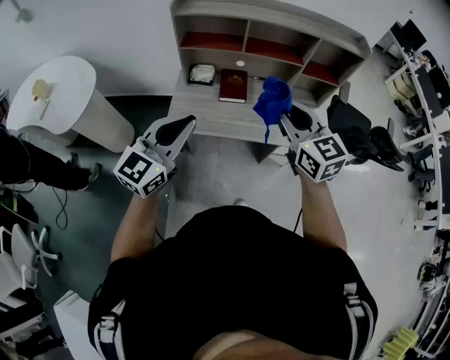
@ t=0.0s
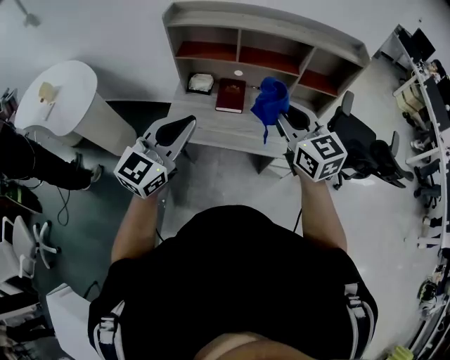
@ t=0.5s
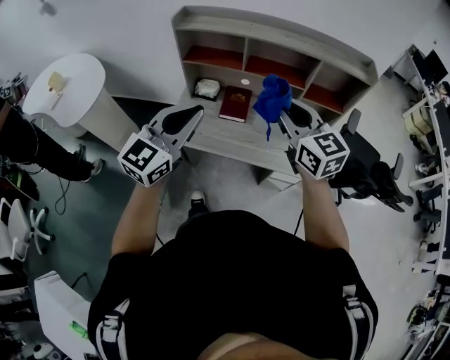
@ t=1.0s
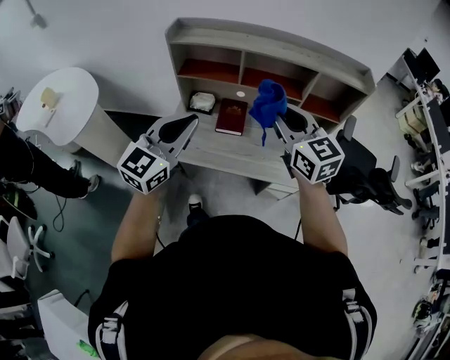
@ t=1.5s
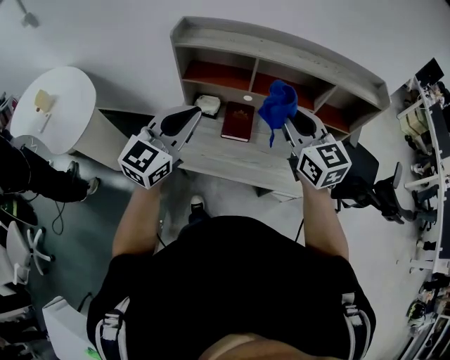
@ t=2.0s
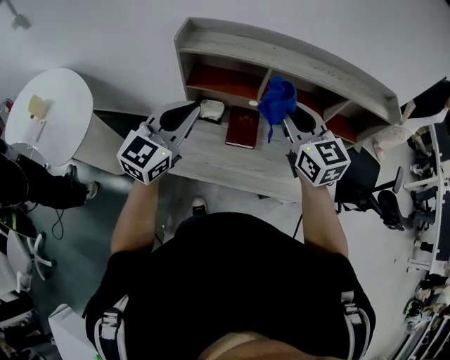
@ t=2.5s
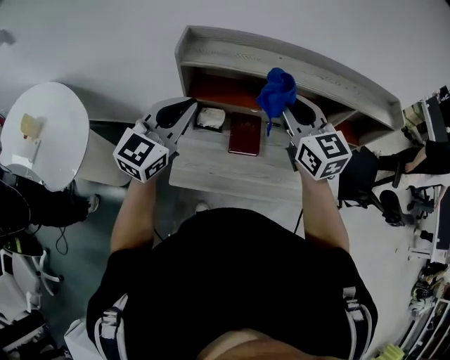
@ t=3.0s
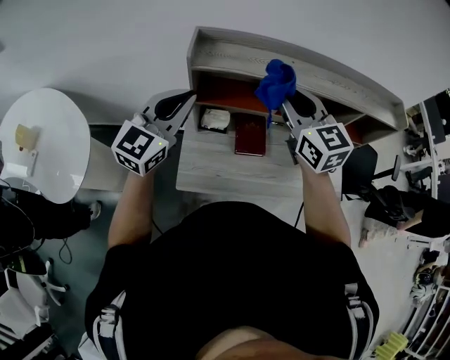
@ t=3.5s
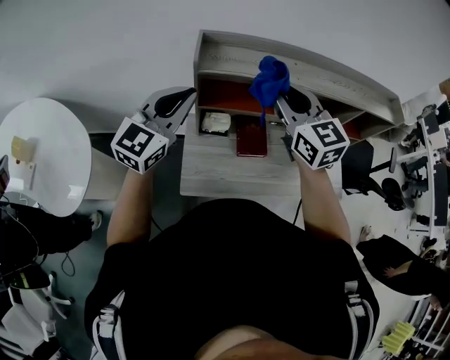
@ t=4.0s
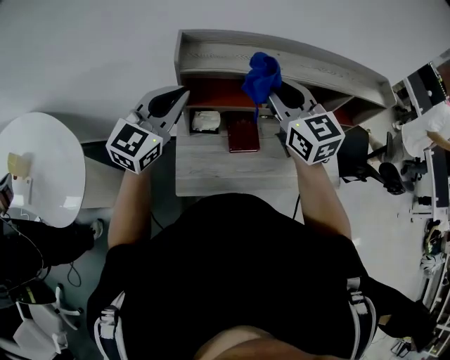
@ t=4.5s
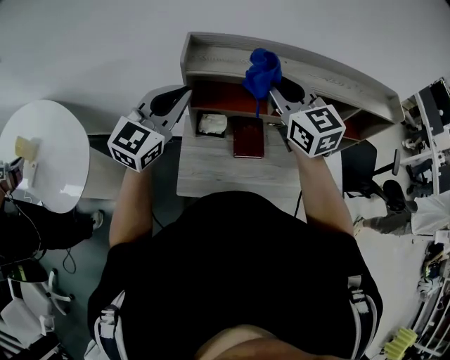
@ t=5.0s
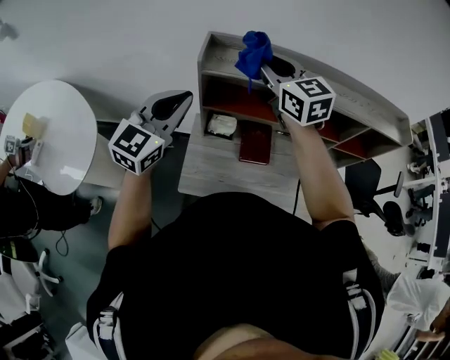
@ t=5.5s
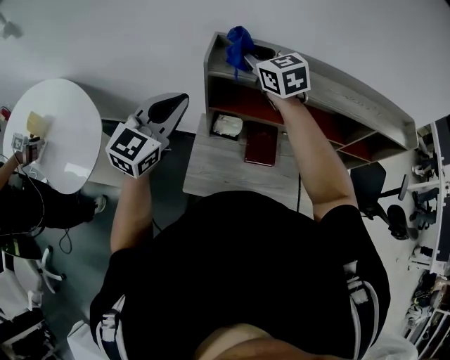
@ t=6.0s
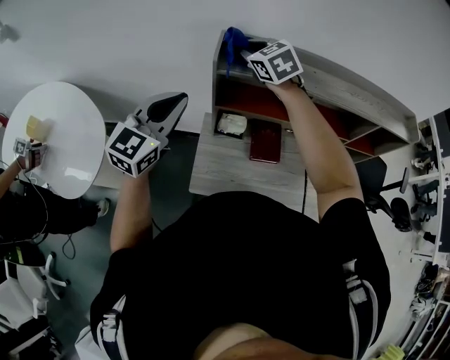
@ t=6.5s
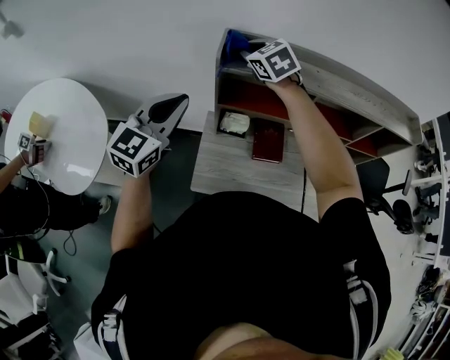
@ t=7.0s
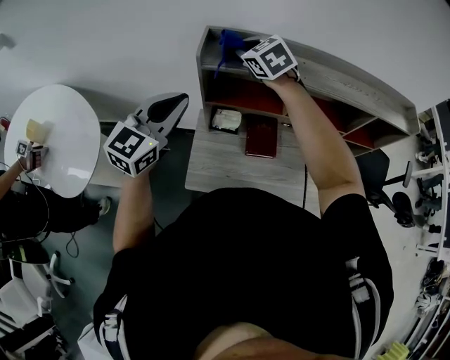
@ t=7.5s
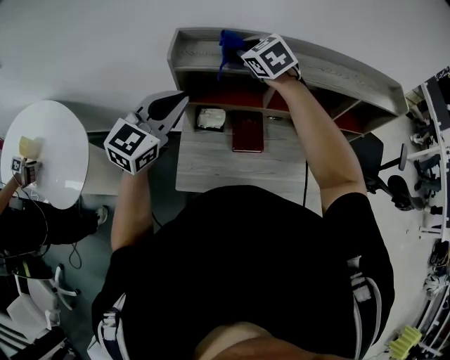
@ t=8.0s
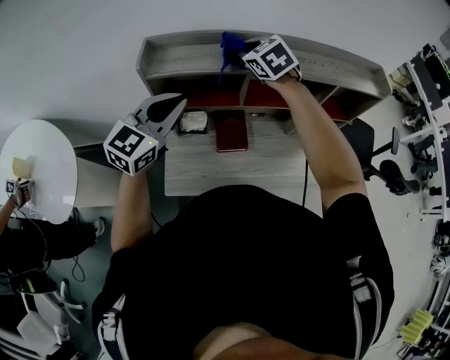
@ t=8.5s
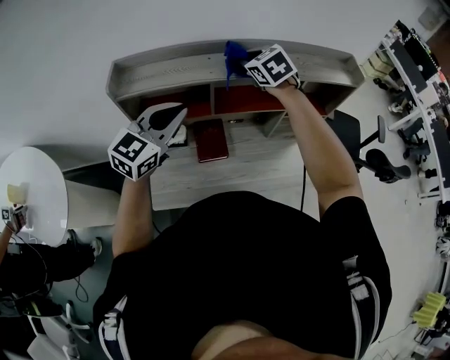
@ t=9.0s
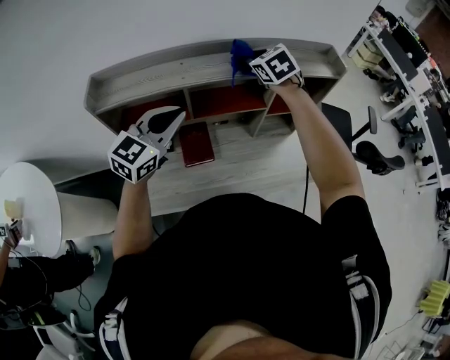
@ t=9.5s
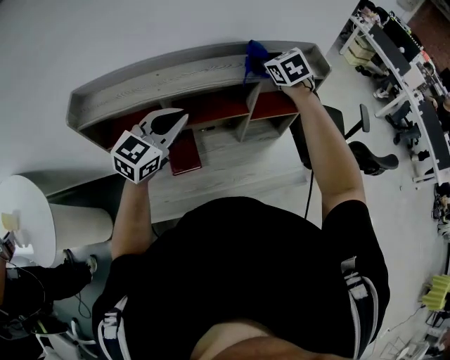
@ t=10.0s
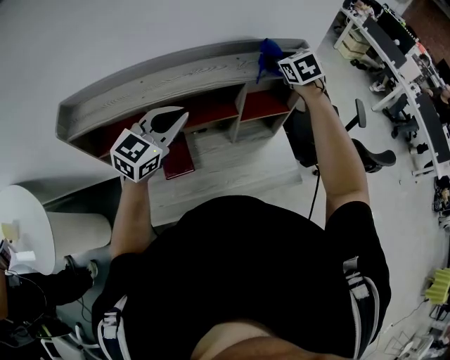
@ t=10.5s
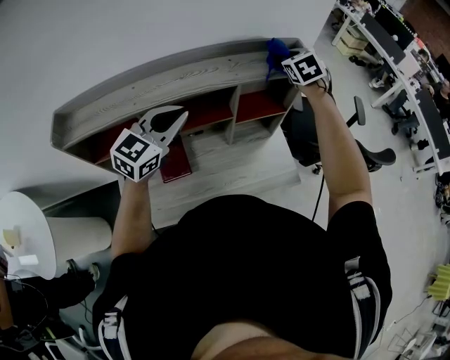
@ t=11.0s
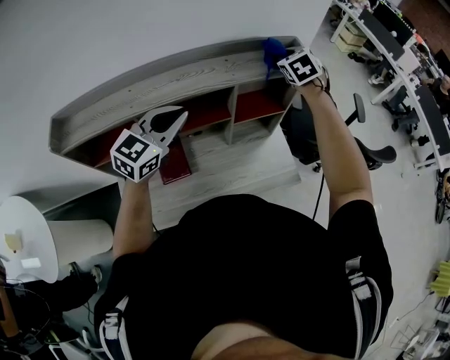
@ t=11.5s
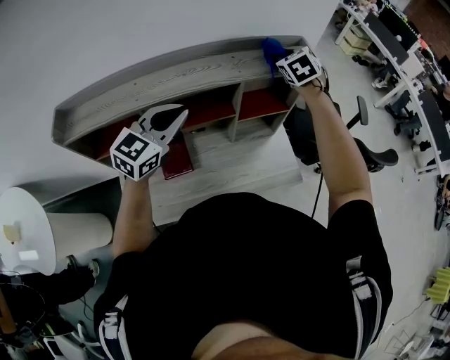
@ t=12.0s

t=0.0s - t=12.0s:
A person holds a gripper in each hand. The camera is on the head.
t=0.0s - t=2.0s: The grippers both shift forward by about 20 cm.
t=2.0s - t=4.0s: The right gripper heads to the left and forward, covering roughly 25 cm. Meanwhile the left gripper travels forward and to the left by approximately 25 cm.
t=4.0s - t=6.0s: The right gripper heads forward and to the left, covering about 15 cm.
t=6.0s - t=8.0s: The grippers both shift to the right by approximately 10 cm. The right gripper changes its angle by roughly 20 degrees.
t=8.0s - t=10.0s: The right gripper shifts about 40 cm to the right, and swivels about 30 degrees. Meanwhile the left gripper goes some 30 cm to the right.
t=10.0s - t=12.0s: The right gripper is displaced to the right and forward by some 15 cm. Meanwhile the left gripper shifts about 5 cm forward.

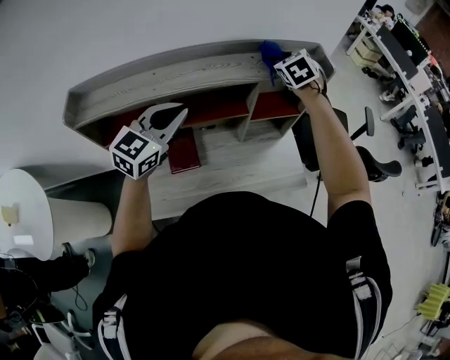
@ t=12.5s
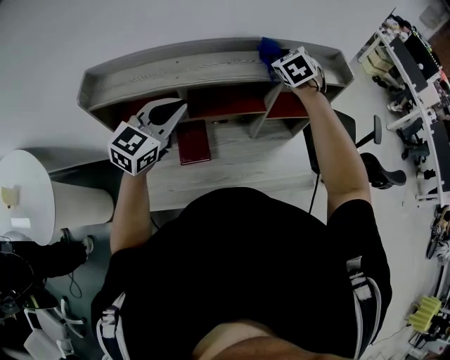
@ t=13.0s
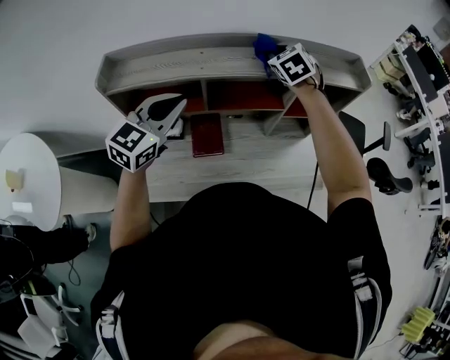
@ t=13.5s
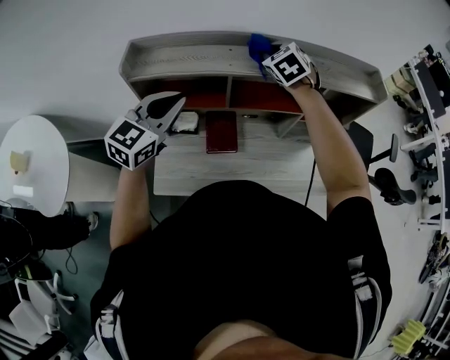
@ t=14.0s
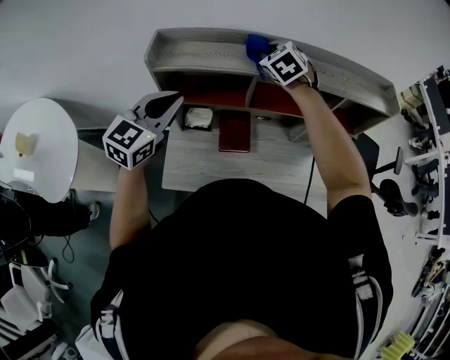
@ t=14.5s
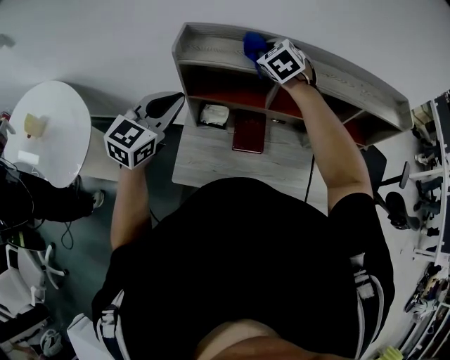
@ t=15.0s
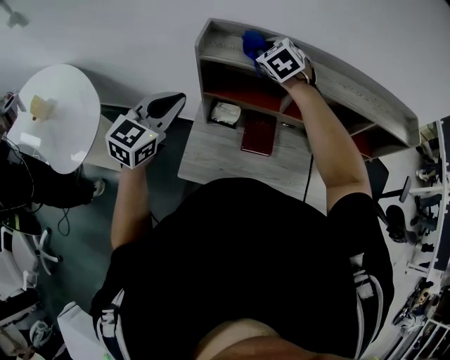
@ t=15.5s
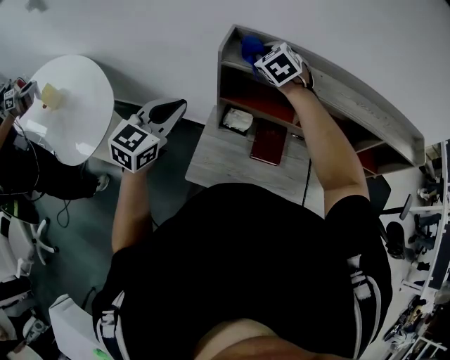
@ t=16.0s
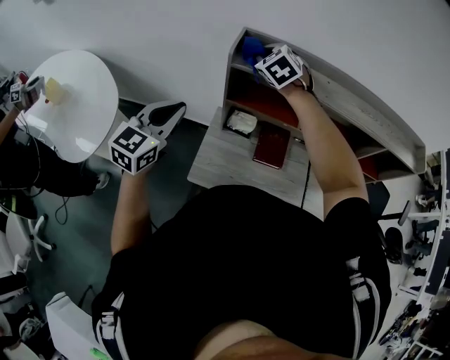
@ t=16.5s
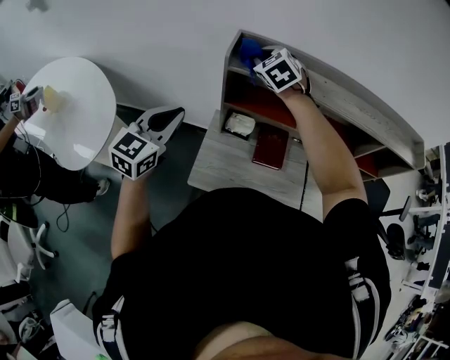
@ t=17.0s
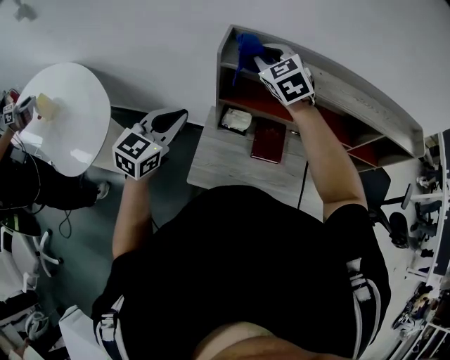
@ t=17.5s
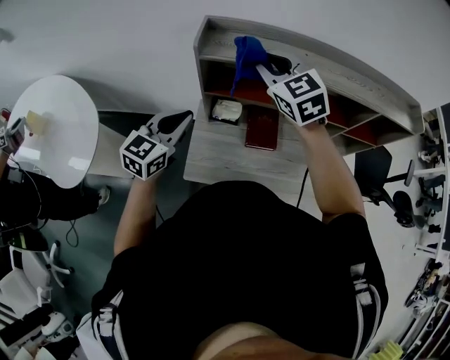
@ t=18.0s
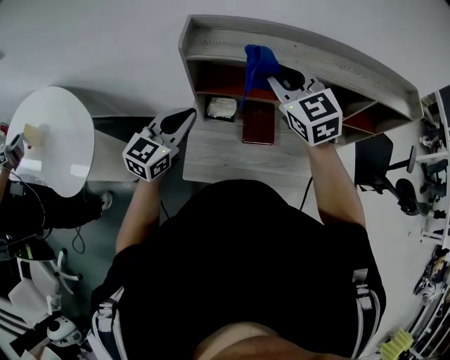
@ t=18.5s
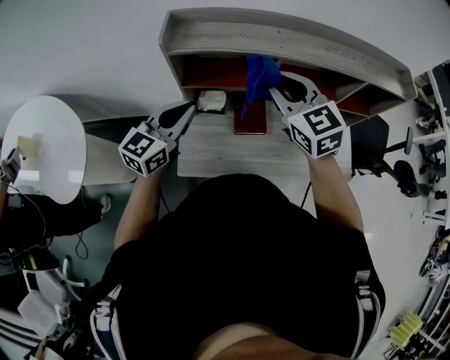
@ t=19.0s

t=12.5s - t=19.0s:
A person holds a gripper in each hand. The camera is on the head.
t=12.5s - t=14.5s: The right gripper travels to the left by roughly 35 cm, and changes its angle by some 20 degrees. Meanwhile the left gripper heads to the left and backward, covering about 25 cm.
t=14.5s - t=17.0s: The two grippers go approximately 20 cm to the left.
t=17.0s - t=19.0s: The right gripper is displaced to the right and backward by roughly 25 cm, and changes its angle by some 30 degrees. The left gripper goes roughly 15 cm to the right, and swivels some 20 degrees.

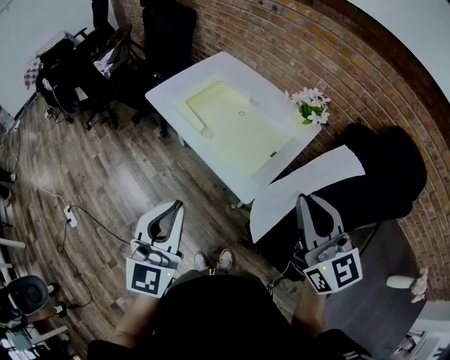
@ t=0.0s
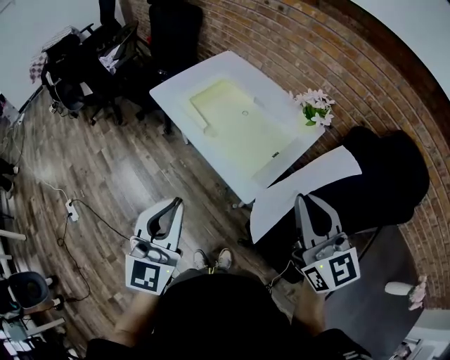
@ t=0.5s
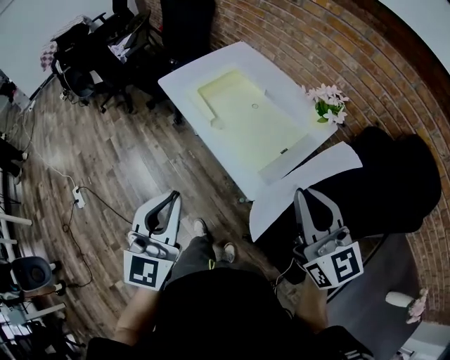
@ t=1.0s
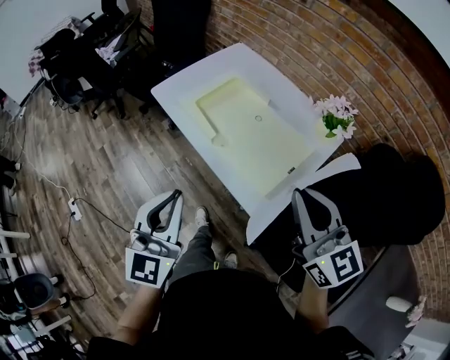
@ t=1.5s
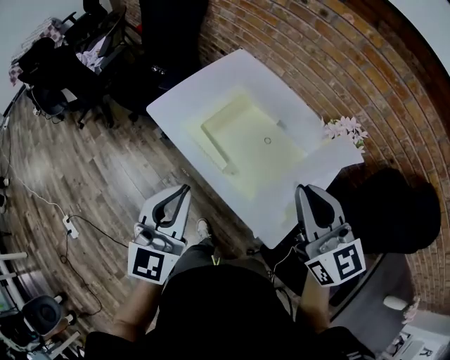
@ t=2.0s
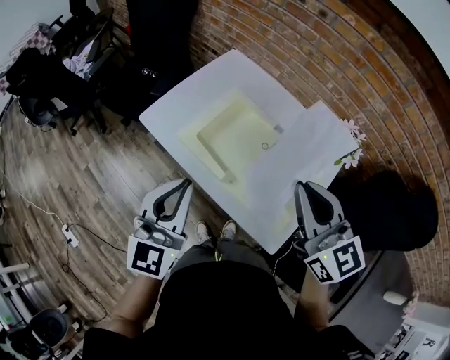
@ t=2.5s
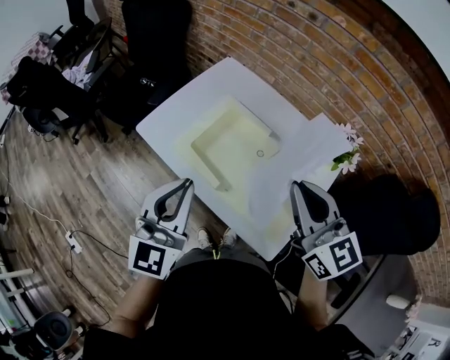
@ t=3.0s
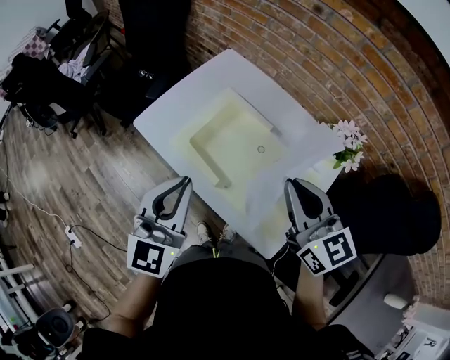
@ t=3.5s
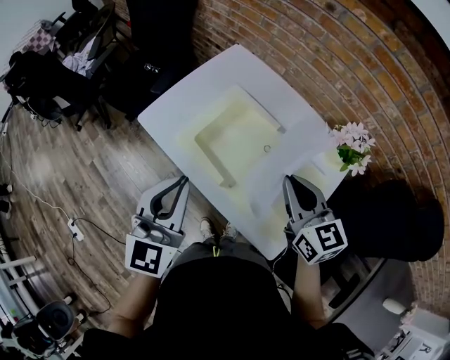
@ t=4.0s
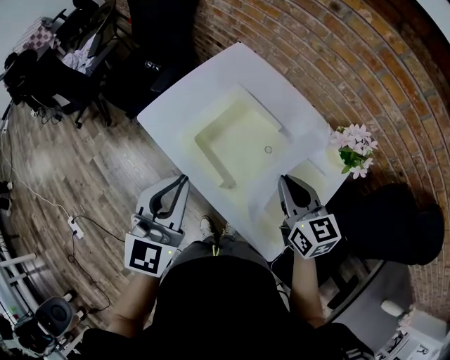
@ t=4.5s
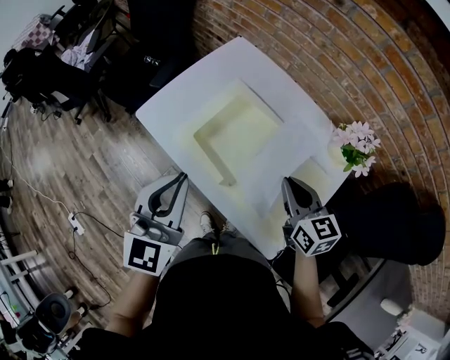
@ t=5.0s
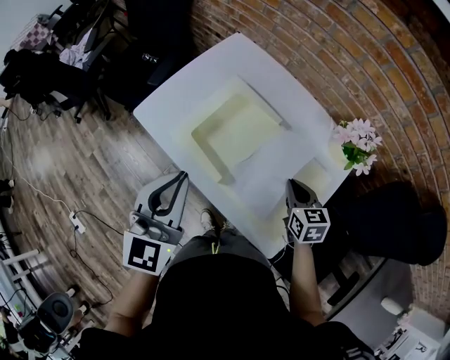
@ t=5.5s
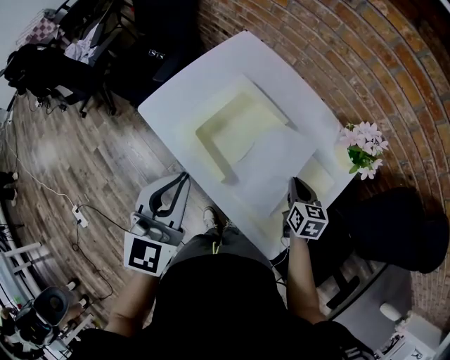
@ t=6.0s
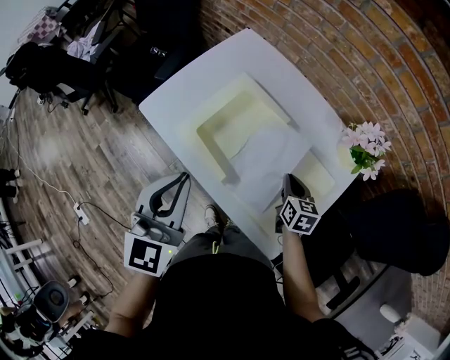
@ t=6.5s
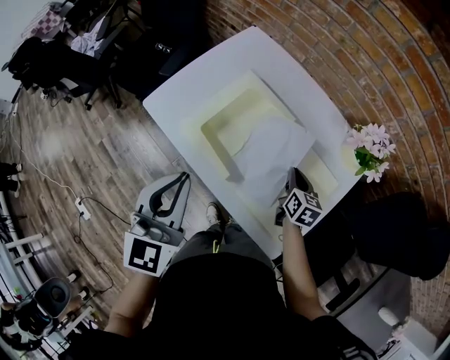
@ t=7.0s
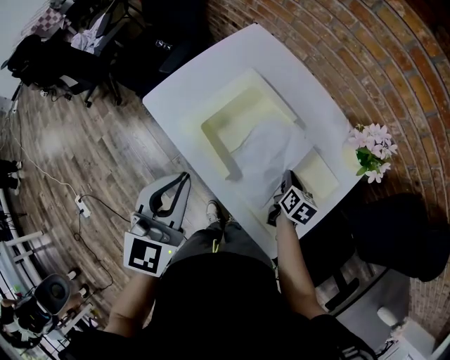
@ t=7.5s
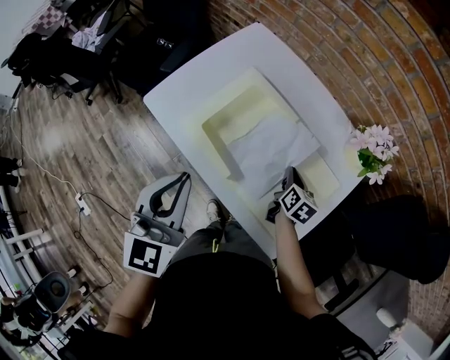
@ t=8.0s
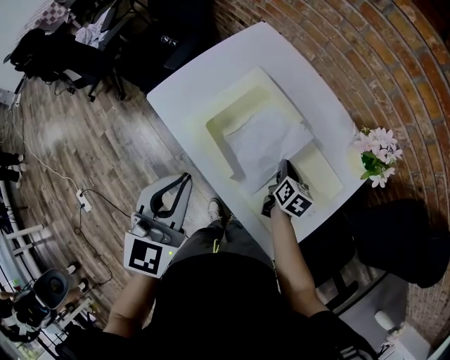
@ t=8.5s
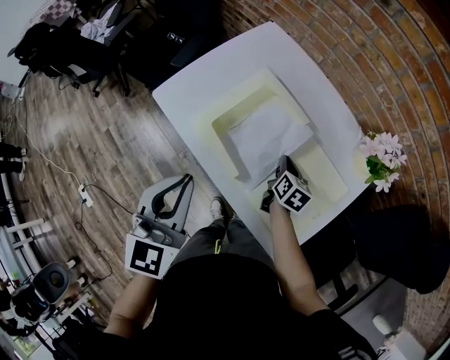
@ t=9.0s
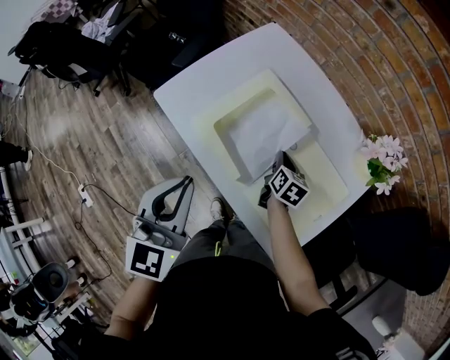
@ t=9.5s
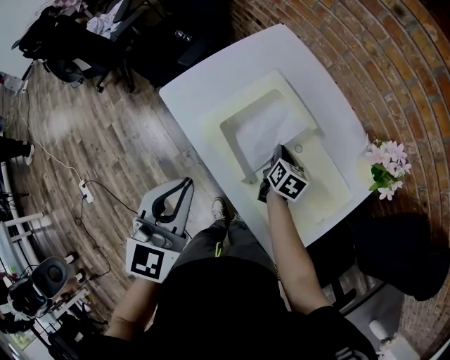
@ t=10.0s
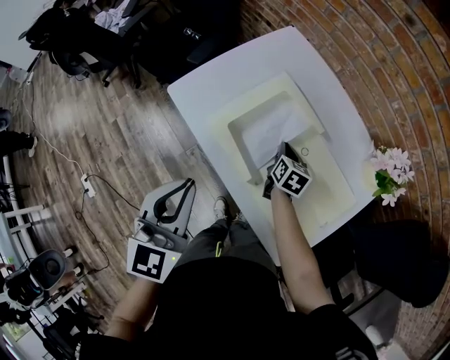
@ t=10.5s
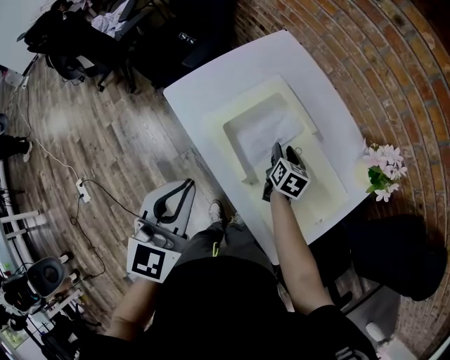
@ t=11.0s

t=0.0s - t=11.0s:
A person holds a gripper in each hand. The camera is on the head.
t=0.0s - t=2.0s: The right gripper travels forward and to the left by some 30 cm; the left gripper heads forward, covering about 25 cm.
t=2.0s - t=3.5s: The two grippers go approximately 10 cm forward.
t=3.5s - t=5.5s: The right gripper is displaced downward by roughly 25 cm, and turns by roughly 30 degrees.
t=5.5s - t=7.5s: The right gripper goes some 10 cm downward, and changes its angle by some 30 degrees.
t=7.5s - t=9.0s: The right gripper travels to the left by roughly 5 cm.
t=9.0s - t=11.0s: The right gripper shifts approximately 5 cm to the left, and opens.
